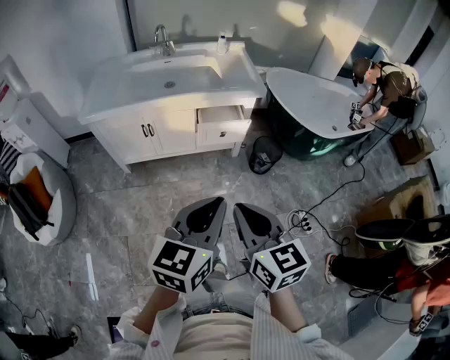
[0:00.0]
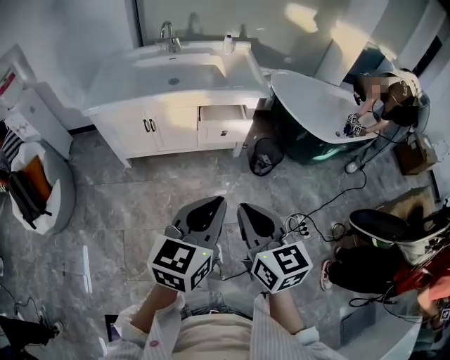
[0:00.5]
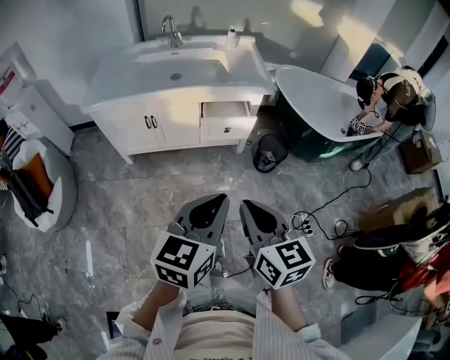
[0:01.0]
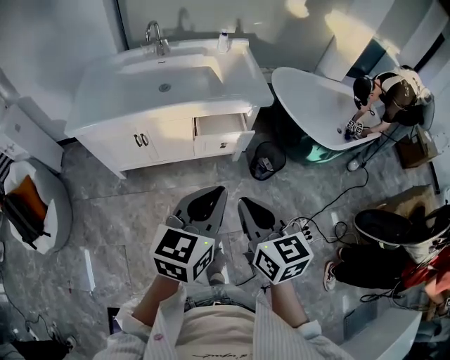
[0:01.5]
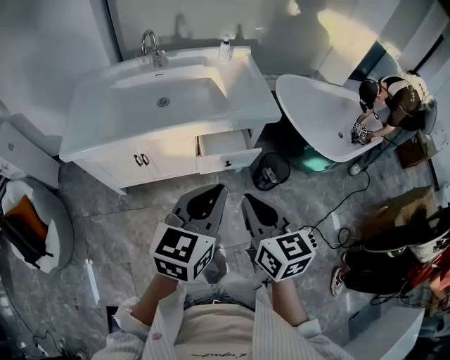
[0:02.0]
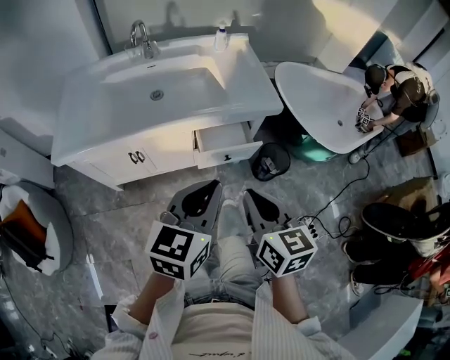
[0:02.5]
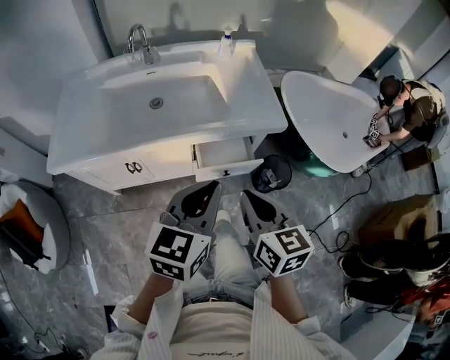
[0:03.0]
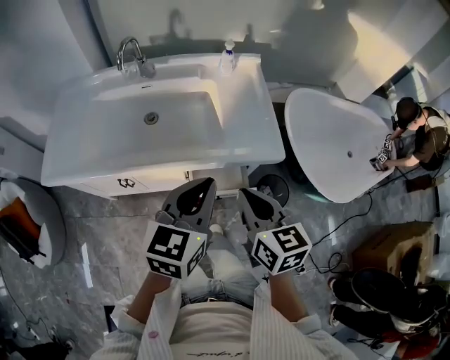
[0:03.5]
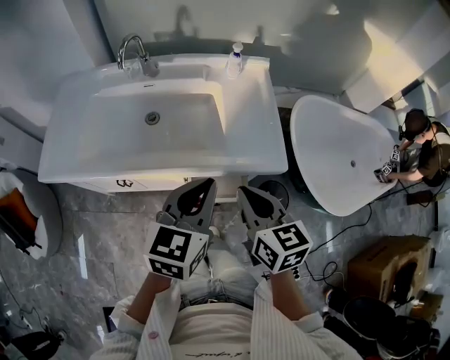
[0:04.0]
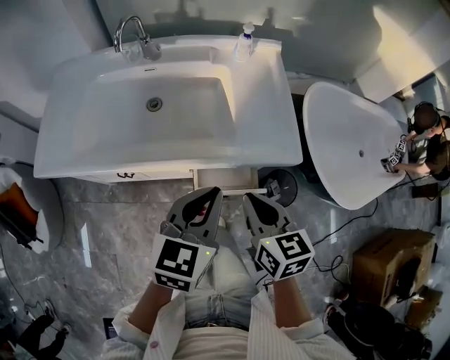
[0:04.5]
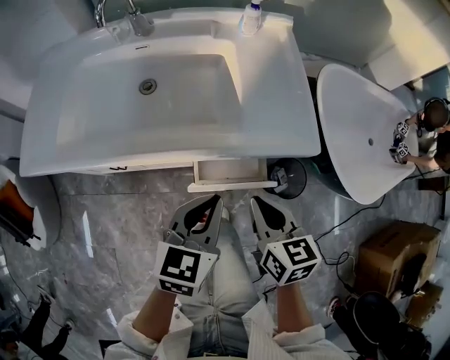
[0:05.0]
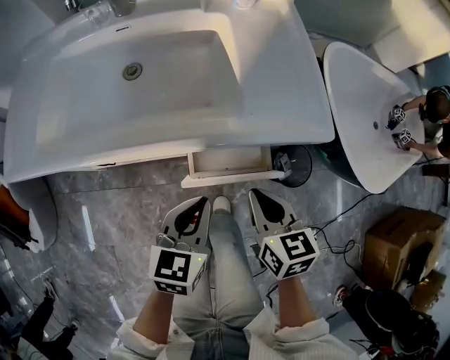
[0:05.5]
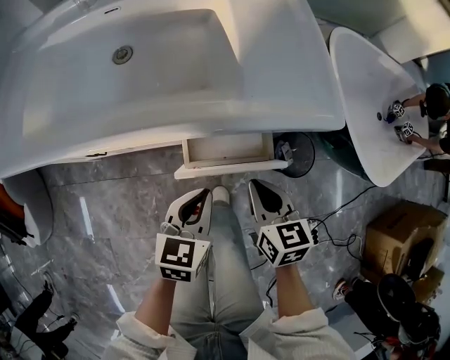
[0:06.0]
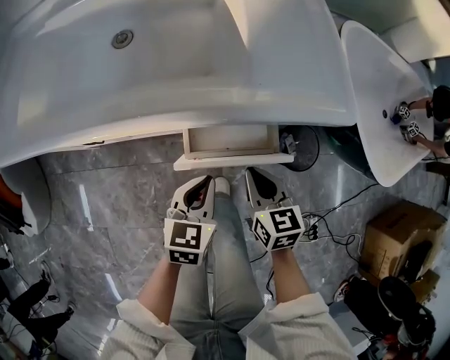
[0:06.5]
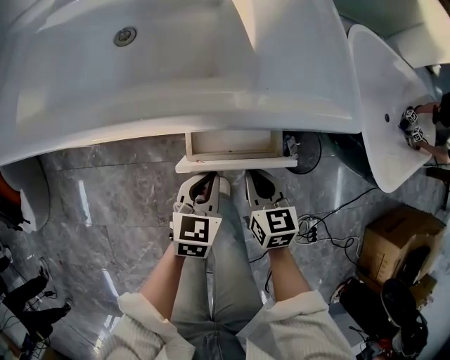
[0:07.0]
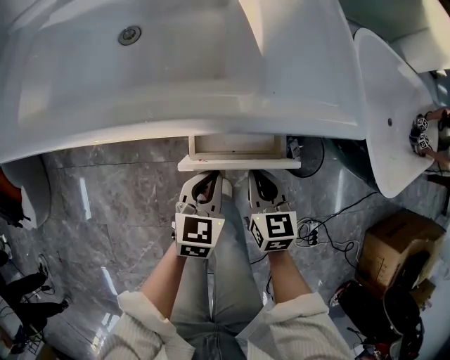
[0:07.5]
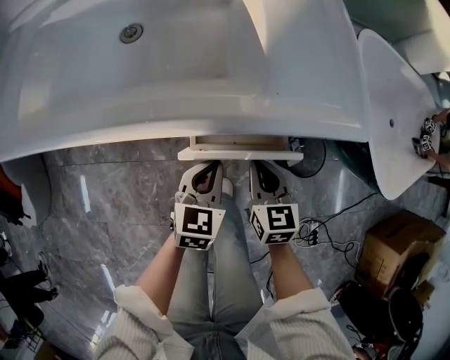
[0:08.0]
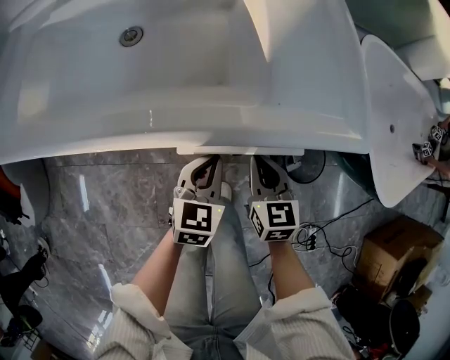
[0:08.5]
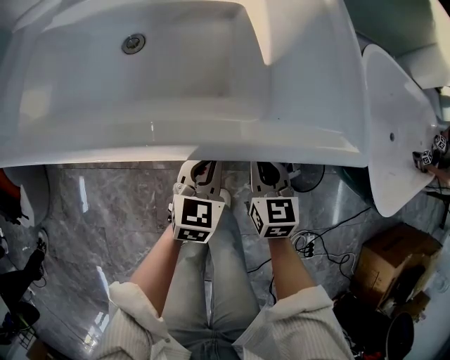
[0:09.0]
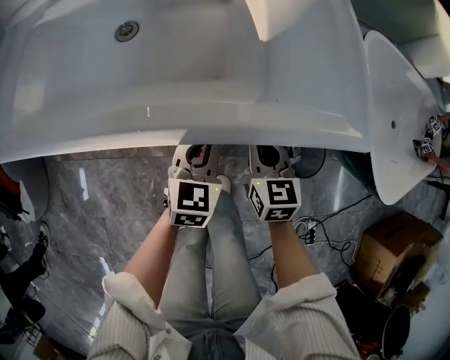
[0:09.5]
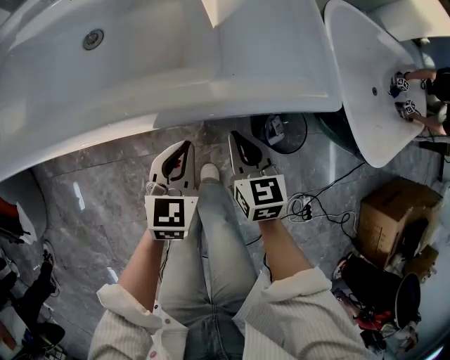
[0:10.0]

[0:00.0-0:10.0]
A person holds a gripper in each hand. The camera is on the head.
0:00.0 to 0:02.0: Both grippers travel together forward, roughly 25 cm.
0:02.0 to 0:04.0: Both grippers move forward, roughly 25 cm.
0:04.0 to 0:06.0: The grippers both shift downward by approximately 25 cm.
0:06.0 to 0:08.0: The left gripper goes roughly 10 cm downward and forward. Meanwhile the right gripper travels downward by some 5 cm.

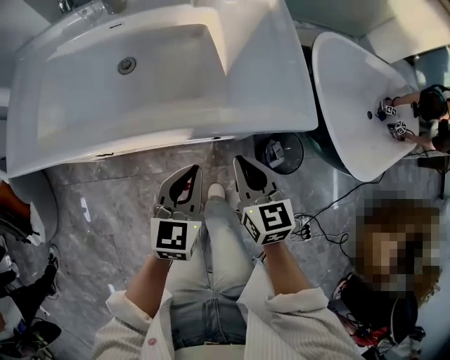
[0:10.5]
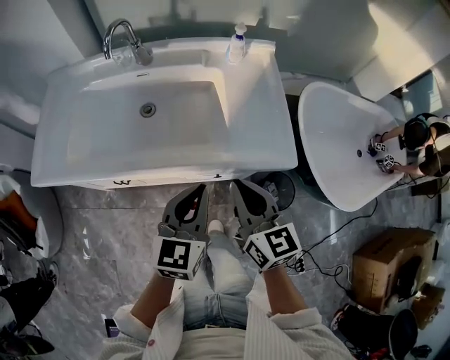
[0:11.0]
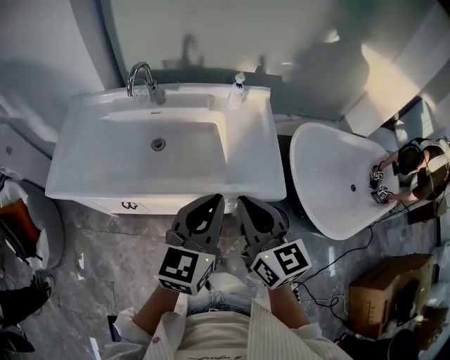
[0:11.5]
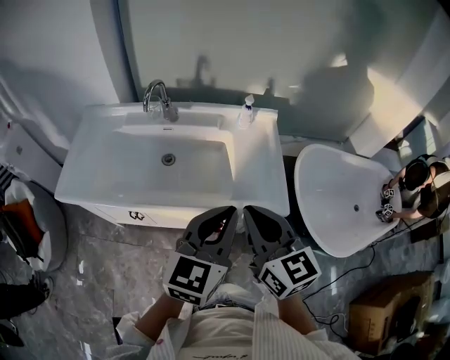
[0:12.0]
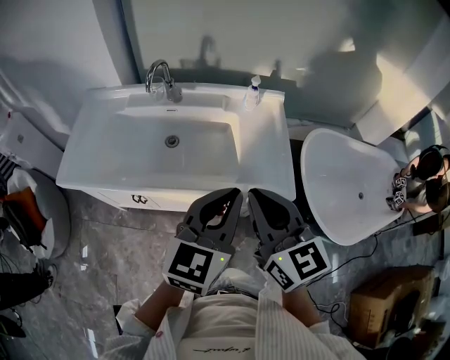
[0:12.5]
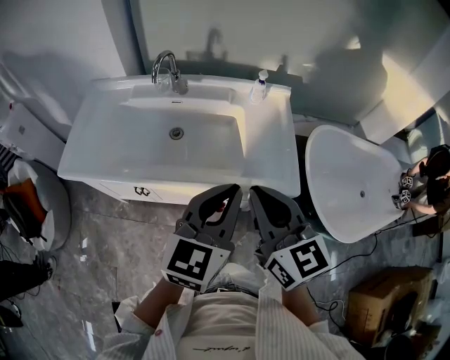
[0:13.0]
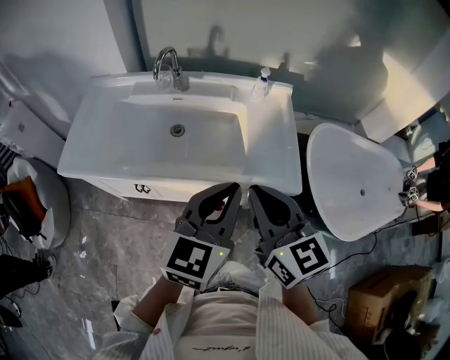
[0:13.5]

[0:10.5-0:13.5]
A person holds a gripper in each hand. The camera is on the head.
0:10.5 to 0:12.0: The grippers both shift upward by about 30 cm. The right gripper rotates roughly 20 degrees.
0:12.0 to 0:13.5: The grippers stay close to where they were, moving slightly.

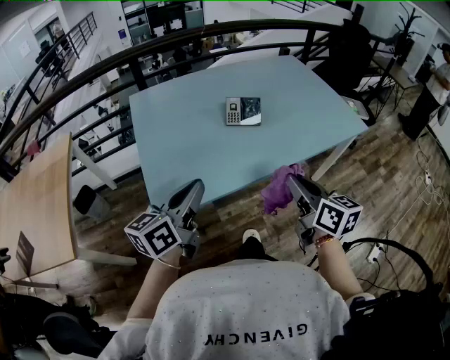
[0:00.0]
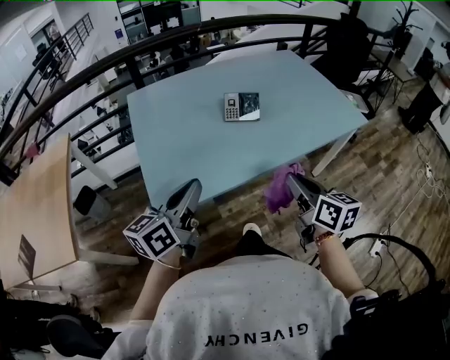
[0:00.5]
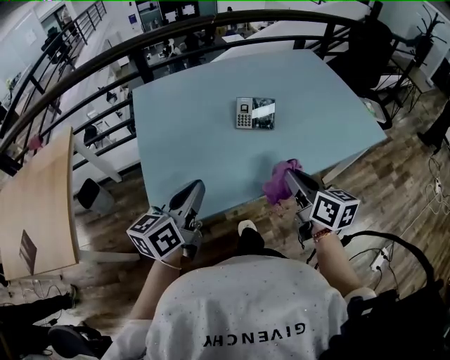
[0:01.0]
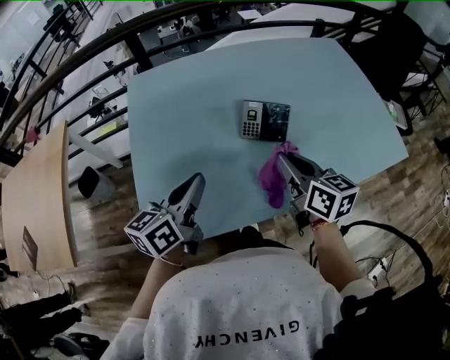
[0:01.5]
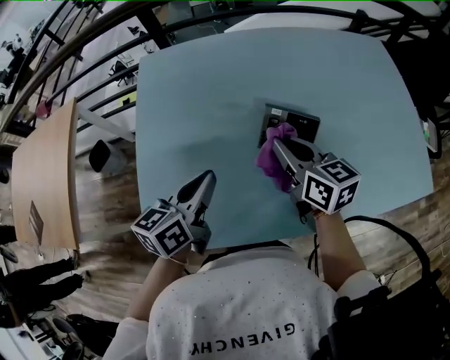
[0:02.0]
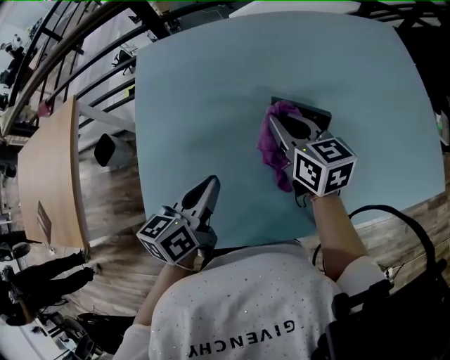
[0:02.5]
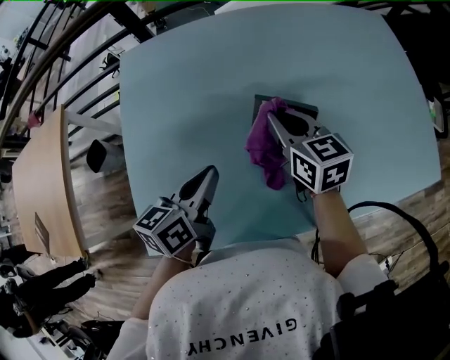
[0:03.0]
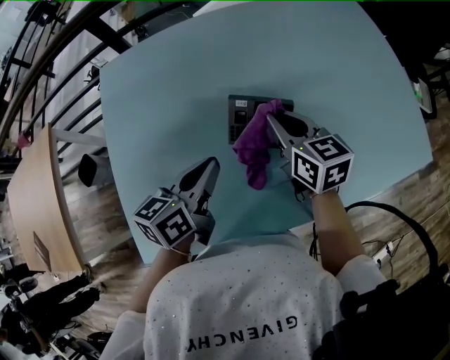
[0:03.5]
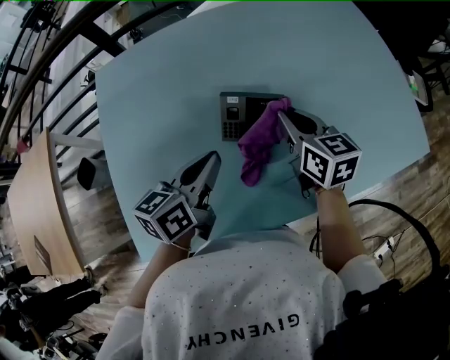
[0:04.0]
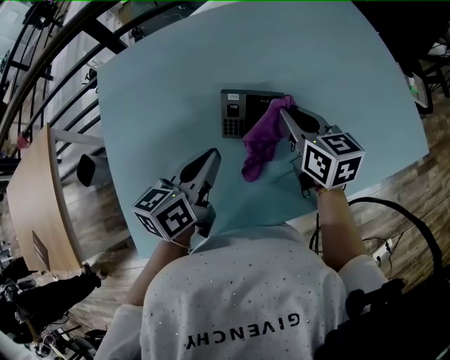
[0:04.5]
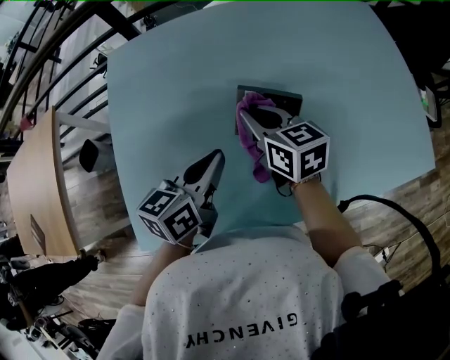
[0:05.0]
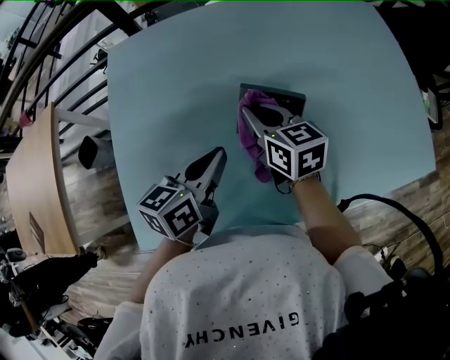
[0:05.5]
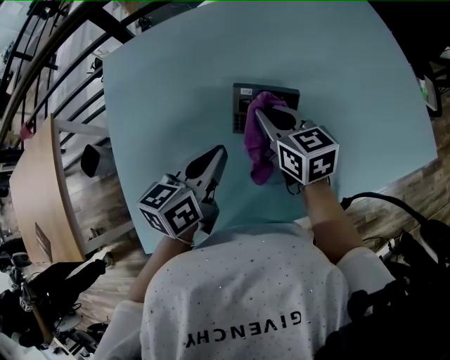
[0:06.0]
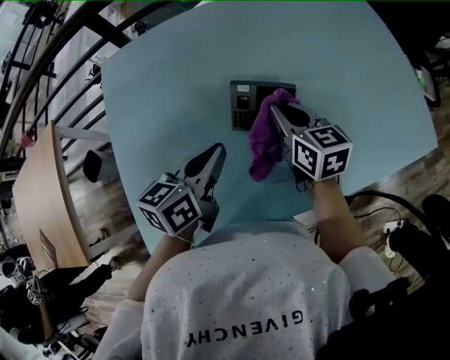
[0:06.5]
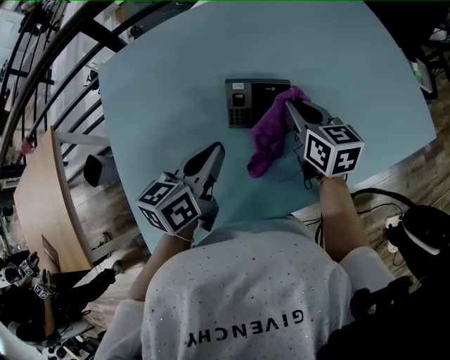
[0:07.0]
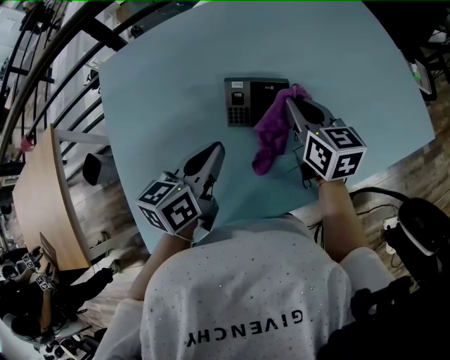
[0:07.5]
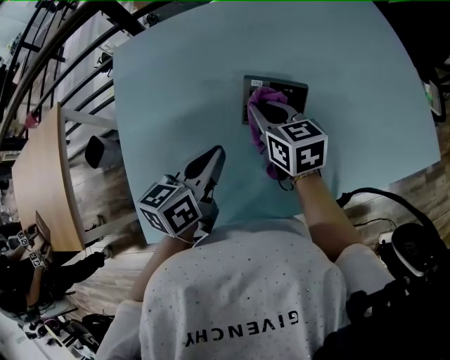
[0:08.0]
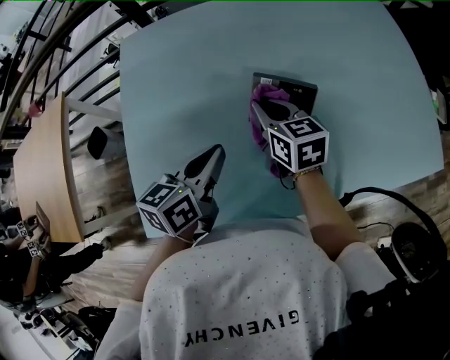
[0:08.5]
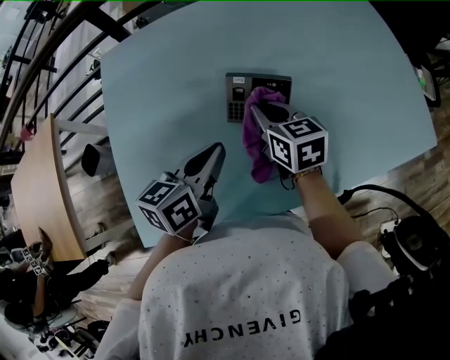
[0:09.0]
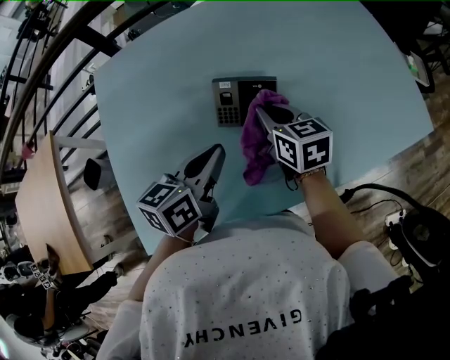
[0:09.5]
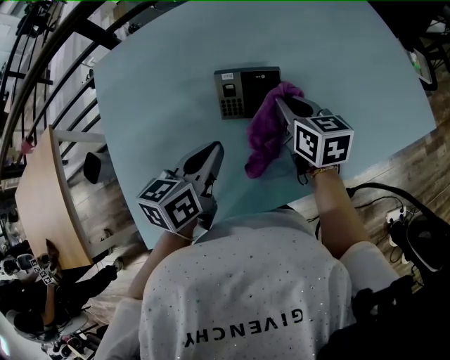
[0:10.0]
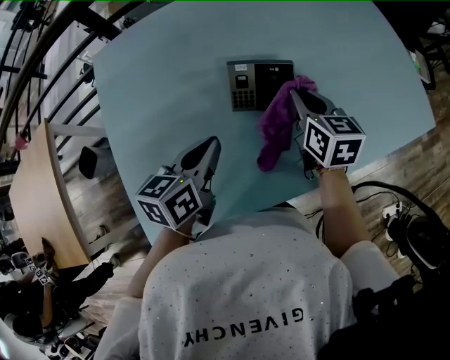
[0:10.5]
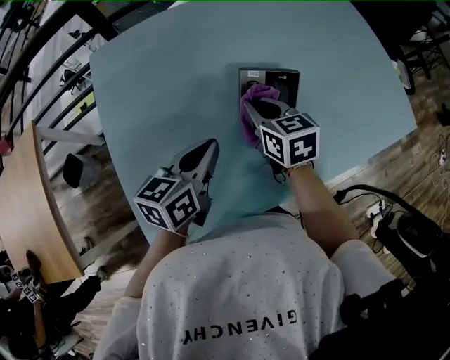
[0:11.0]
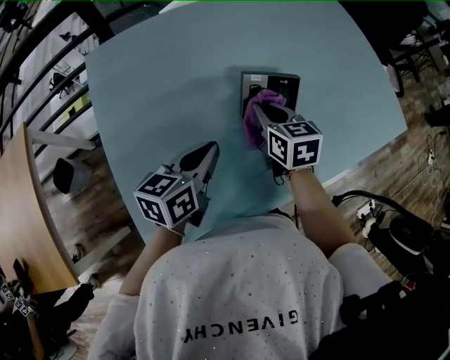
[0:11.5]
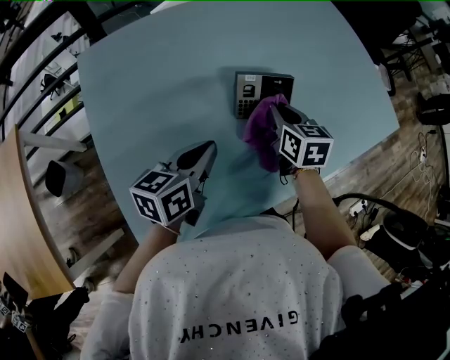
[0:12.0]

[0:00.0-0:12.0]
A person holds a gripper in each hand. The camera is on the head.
0:00.0 to 0:02.0: The right gripper travels forward by some 35 cm, and rotates roughly 20 degrees, while the left gripper is displaced forward and downward by about 30 cm, and swivels about 20 degrees.
0:02.0 to 0:04.0: The right gripper travels to the right by about 10 cm; the left gripper goes roughly 10 cm to the right and forward.
0:04.0 to 0:06.0: The right gripper shifts roughly 10 cm to the left.
0:06.0 to 0:08.0: The right gripper reaches approximately 10 cm to the right, then returns.
0:08.0 to 0:10.0: The right gripper shifts approximately 10 cm to the right.
0:10.0 to 0:12.0: Both grippers move to the left, roughly 5 cm.

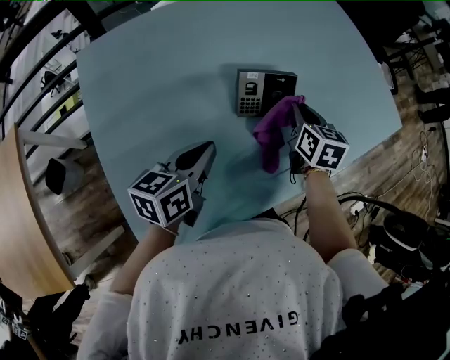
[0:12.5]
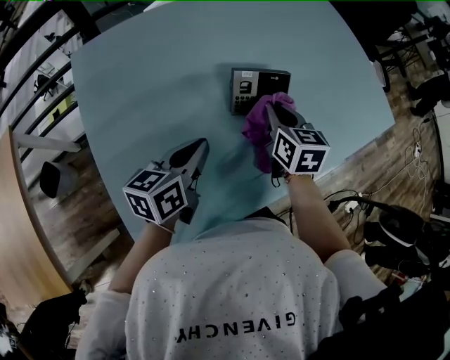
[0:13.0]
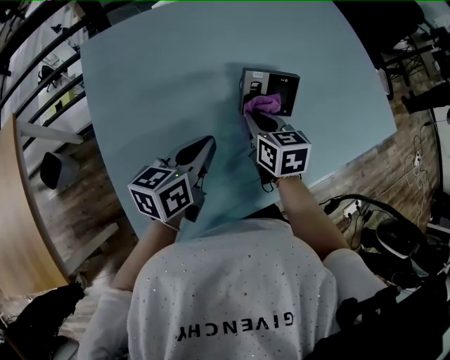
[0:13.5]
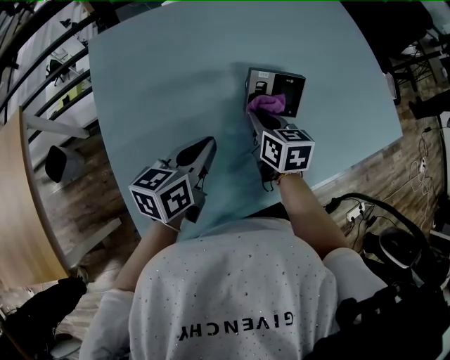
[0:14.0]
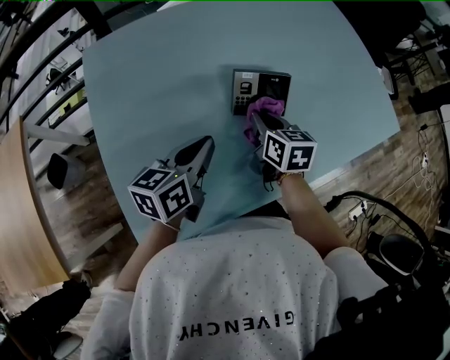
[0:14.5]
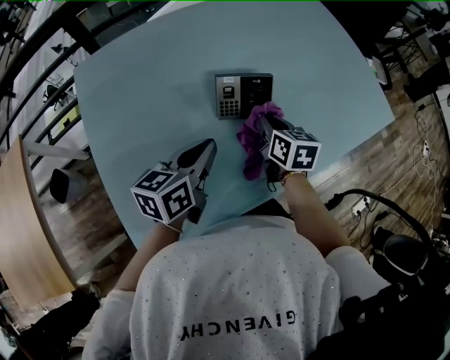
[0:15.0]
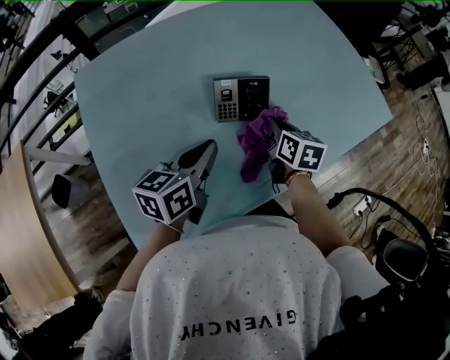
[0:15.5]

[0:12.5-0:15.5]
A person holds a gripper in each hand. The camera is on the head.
0:12.5 to 0:14.0: The right gripper travels to the left and backward by some 15 cm.
0:14.0 to 0:15.5: The right gripper is displaced to the right by approximately 15 cm. The left gripper is displaced to the right by approximately 5 cm.
